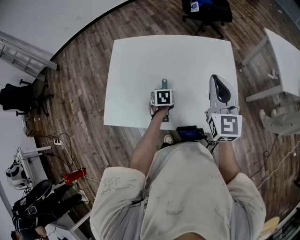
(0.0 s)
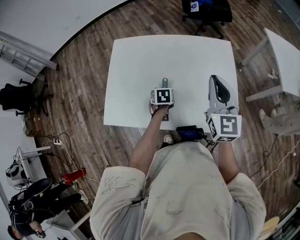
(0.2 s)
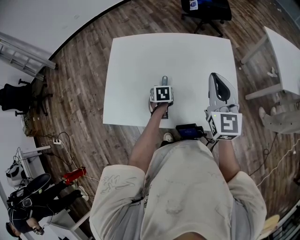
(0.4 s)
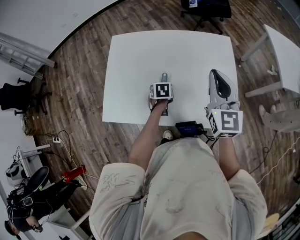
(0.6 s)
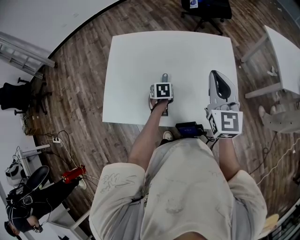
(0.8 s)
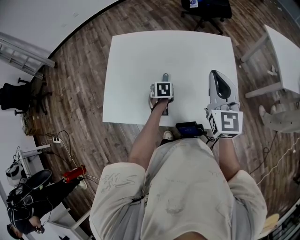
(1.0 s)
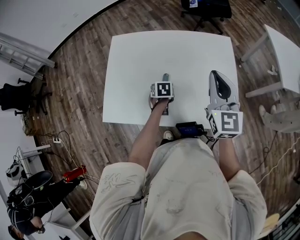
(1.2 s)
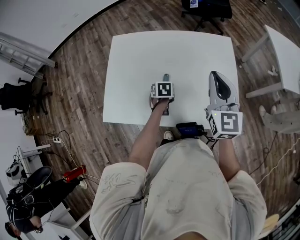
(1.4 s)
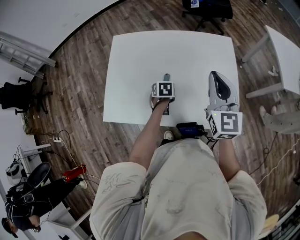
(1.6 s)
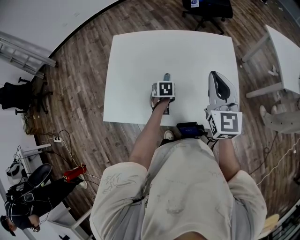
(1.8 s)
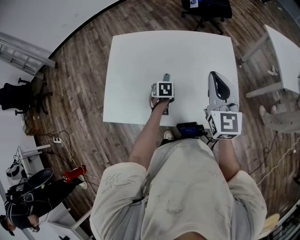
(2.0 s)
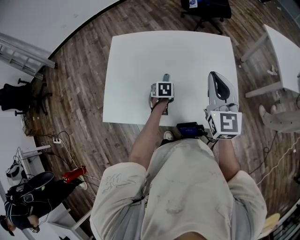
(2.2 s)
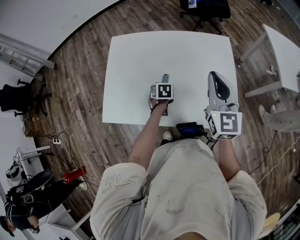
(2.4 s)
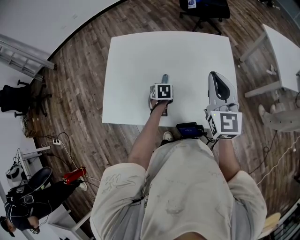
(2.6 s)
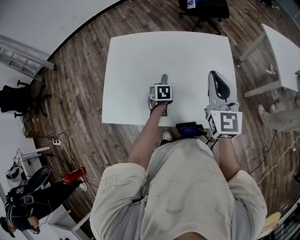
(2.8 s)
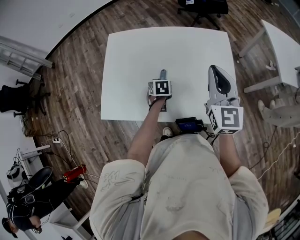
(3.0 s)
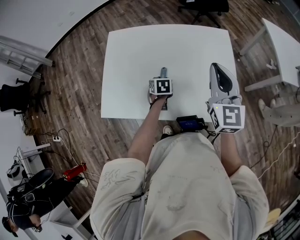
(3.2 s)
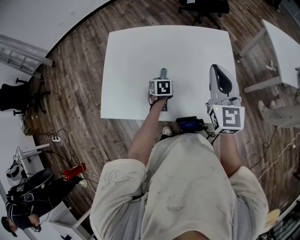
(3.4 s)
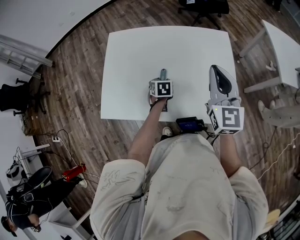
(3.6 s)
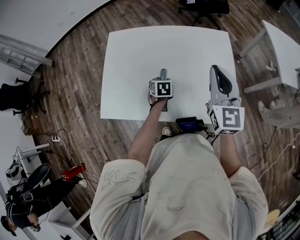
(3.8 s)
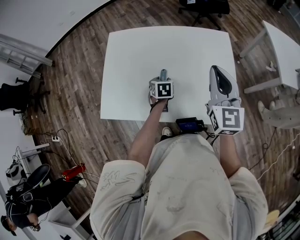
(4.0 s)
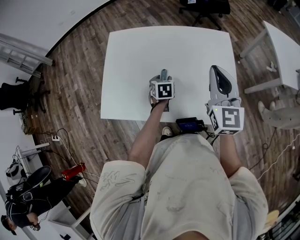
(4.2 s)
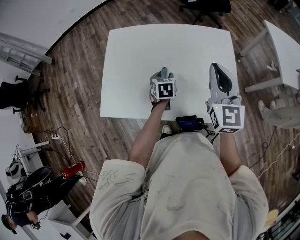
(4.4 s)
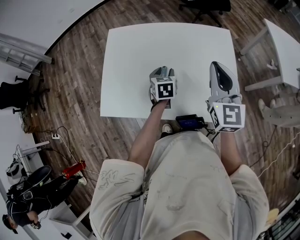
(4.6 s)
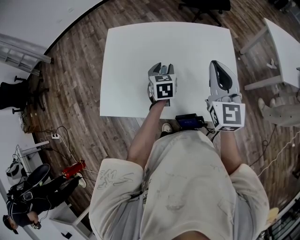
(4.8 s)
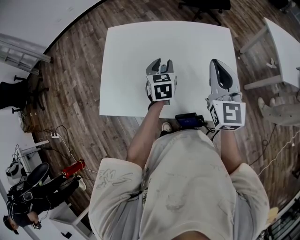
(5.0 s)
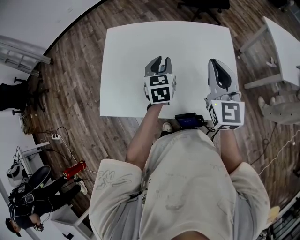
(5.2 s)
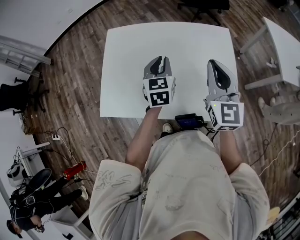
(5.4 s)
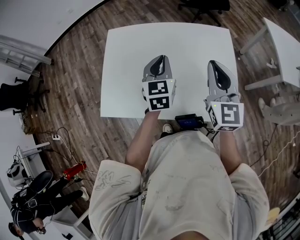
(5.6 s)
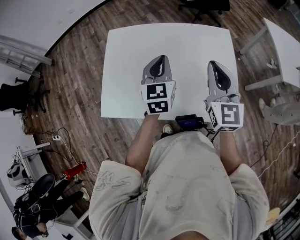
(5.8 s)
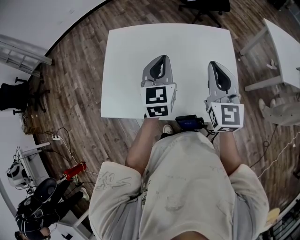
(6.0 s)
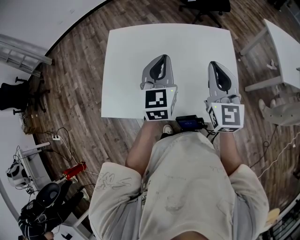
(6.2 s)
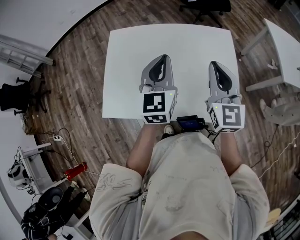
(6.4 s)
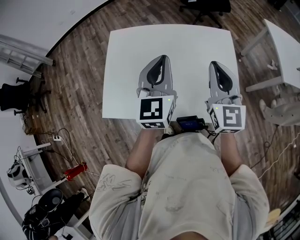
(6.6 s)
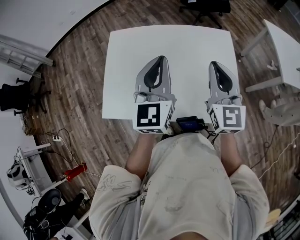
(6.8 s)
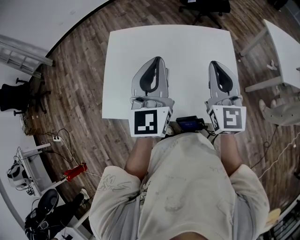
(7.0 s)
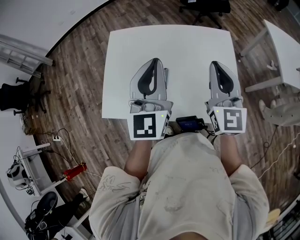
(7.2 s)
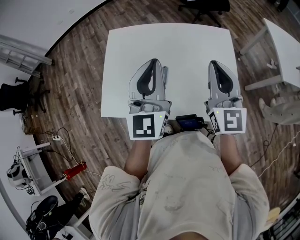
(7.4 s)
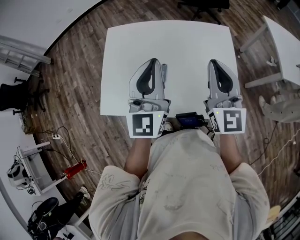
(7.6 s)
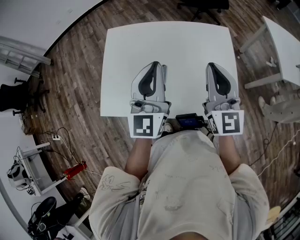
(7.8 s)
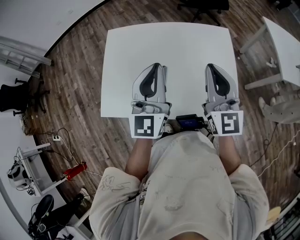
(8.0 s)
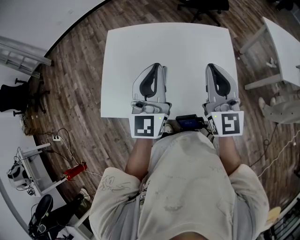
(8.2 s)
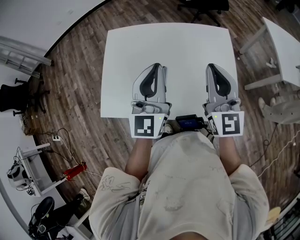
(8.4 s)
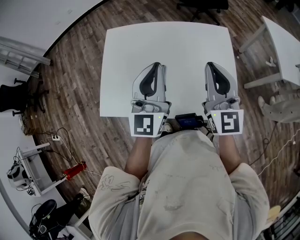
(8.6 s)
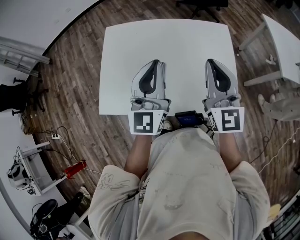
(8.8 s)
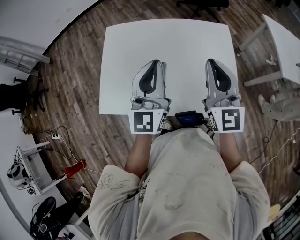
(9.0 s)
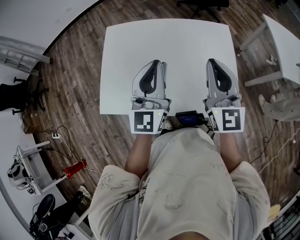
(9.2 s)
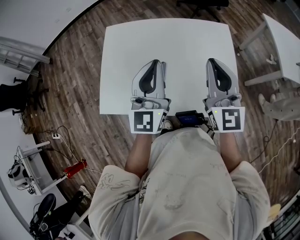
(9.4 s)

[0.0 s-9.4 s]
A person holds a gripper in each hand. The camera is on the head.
0.0 to 3.2 s: The grippers make only small movements.
3.2 to 4.8 s: The left gripper heads upward, covering about 10 cm, and changes its angle by about 20 degrees.
4.8 to 6.2 s: The left gripper heads upward, covering roughly 15 cm, turns by some 30 degrees, and closes up.
6.2 to 7.8 s: The left gripper moves upward and backward, some 10 cm, and rotates approximately 20 degrees.
7.8 to 9.4 s: The two grippers keep their place.

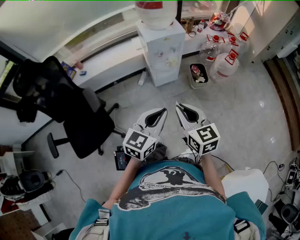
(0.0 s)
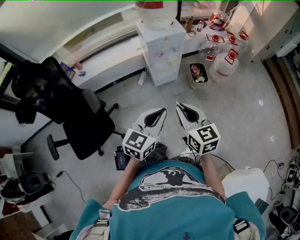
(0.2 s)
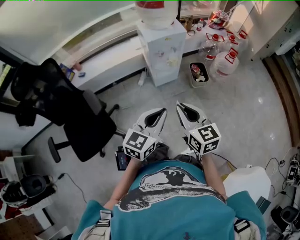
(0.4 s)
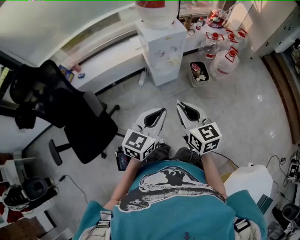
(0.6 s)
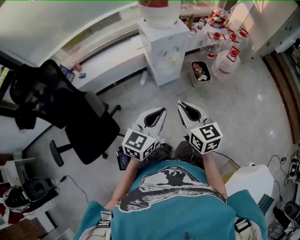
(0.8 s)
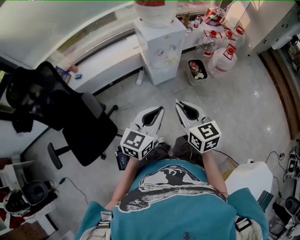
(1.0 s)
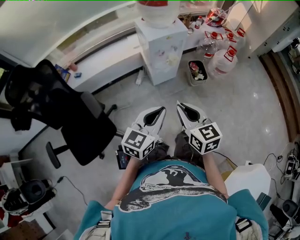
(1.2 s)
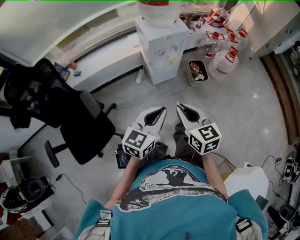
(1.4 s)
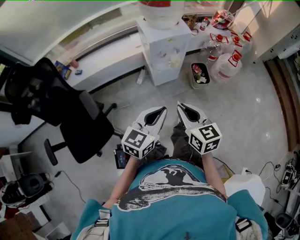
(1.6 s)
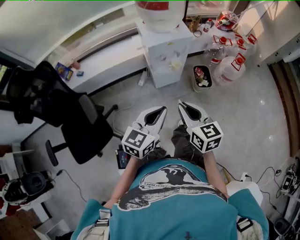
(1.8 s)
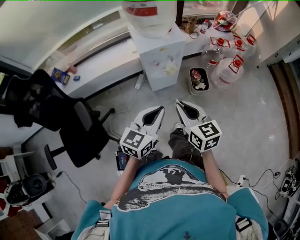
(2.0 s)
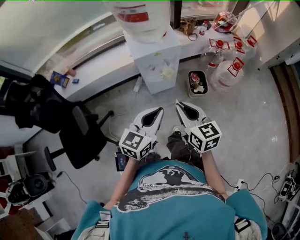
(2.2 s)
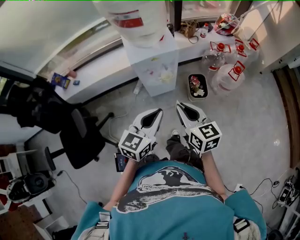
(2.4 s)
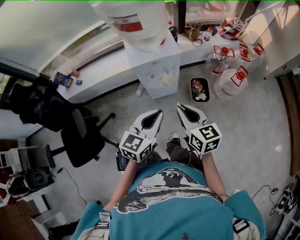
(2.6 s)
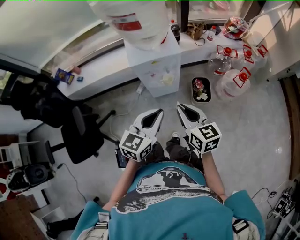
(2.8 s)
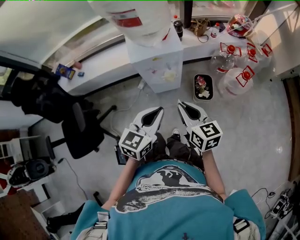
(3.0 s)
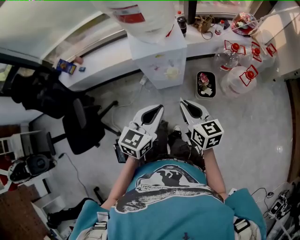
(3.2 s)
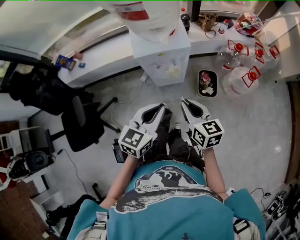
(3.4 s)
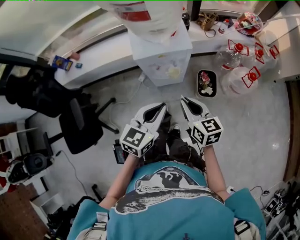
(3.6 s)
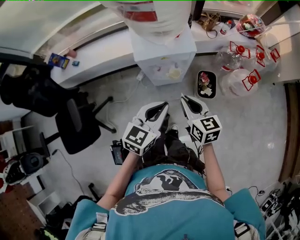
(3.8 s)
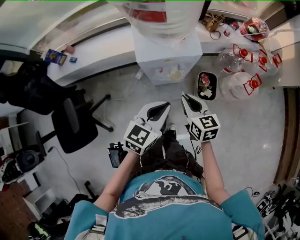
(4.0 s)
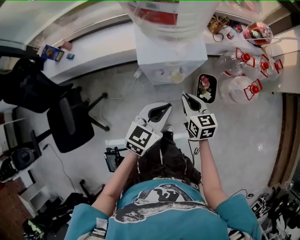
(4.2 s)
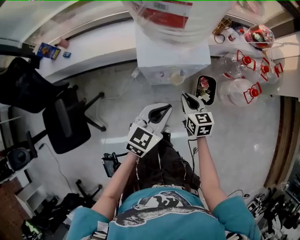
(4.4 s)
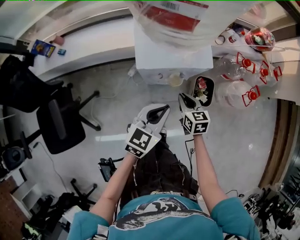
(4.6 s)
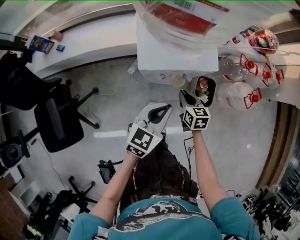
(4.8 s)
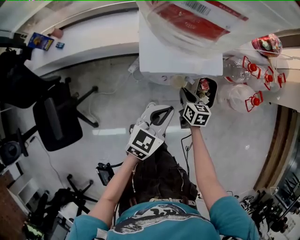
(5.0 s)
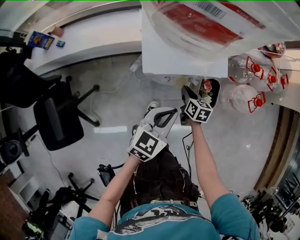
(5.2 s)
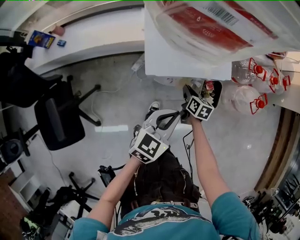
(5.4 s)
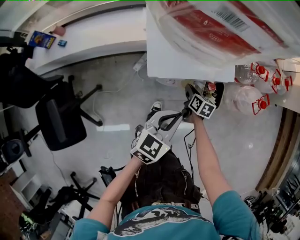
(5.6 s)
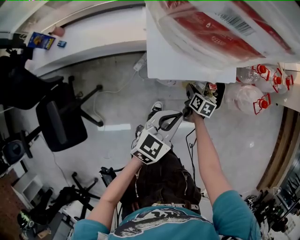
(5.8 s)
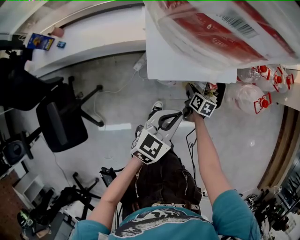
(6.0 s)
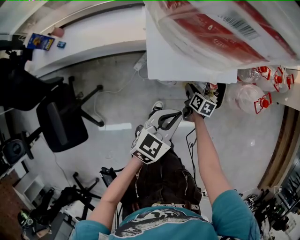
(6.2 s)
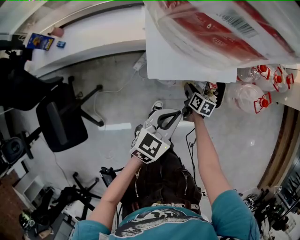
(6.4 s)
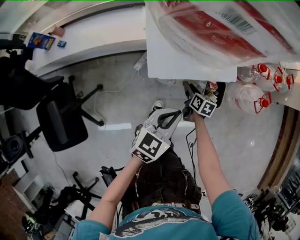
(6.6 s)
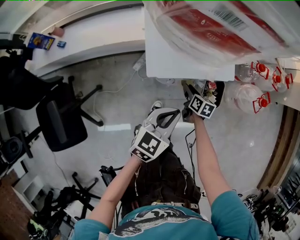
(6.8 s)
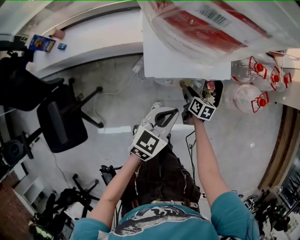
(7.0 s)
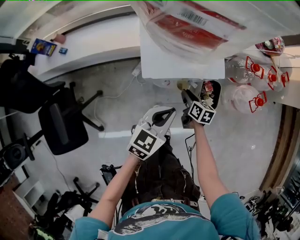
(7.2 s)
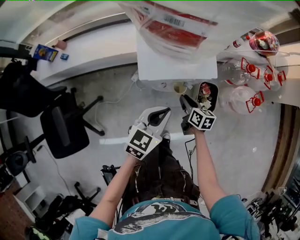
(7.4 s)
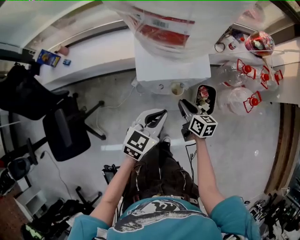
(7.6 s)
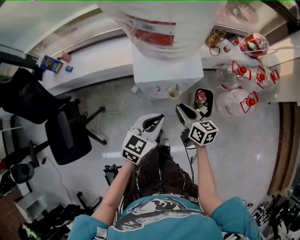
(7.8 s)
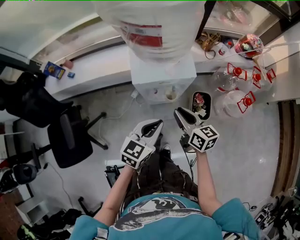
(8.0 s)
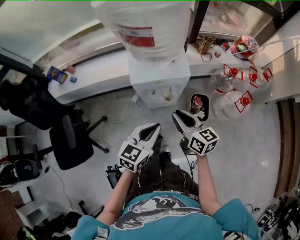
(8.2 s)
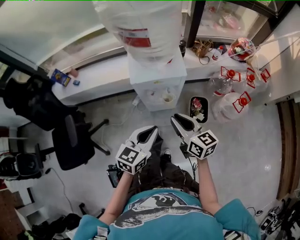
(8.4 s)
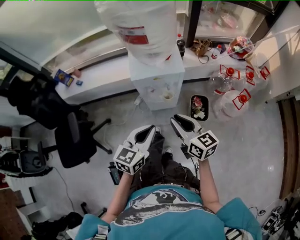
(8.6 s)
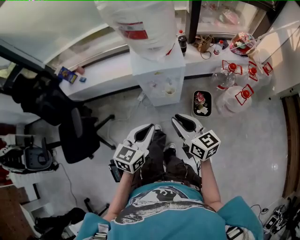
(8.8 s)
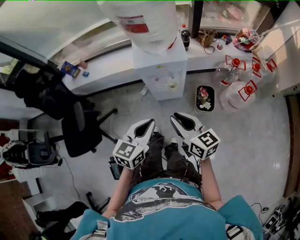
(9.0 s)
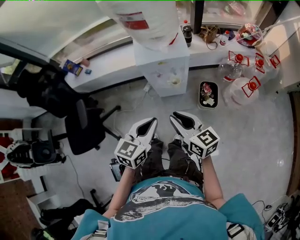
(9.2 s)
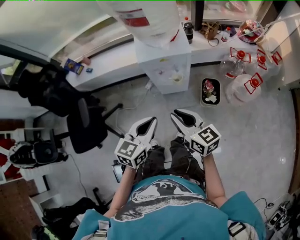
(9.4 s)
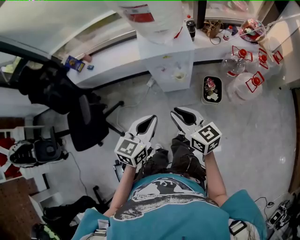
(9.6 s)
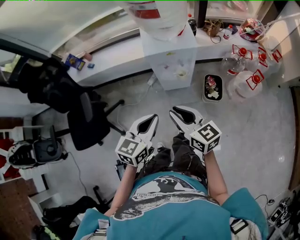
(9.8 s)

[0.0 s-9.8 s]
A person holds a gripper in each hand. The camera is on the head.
0.0 to 1.4 s: The right gripper changes place by roughly 5 cm; the left gripper shifts some 5 cm to the left.
1.4 to 2.8 s: The grippers both shift forward and to the right by about 25 cm.
2.8 to 4.2 s: The two grippers go approximately 15 cm forward and downward.
4.2 to 5.6 s: The right gripper goes approximately 25 cm downward and forward, and changes its angle by some 30 degrees, while the left gripper moves downward, about 10 cm.
5.6 to 7.0 s: The grippers stay close to where they were, moving slightly.
7.0 to 8.4 s: The right gripper travels upward and backward by roughly 35 cm, and changes its angle by roughly 40 degrees; the left gripper shifts some 15 cm backward and upward.
8.4 to 9.8 s: Both grippers travel together backward and to the left, approximately 10 cm.

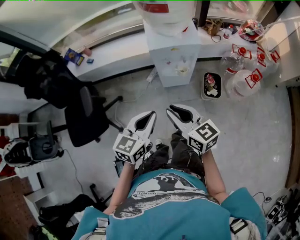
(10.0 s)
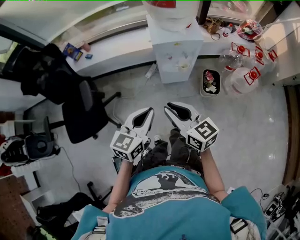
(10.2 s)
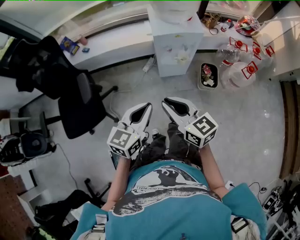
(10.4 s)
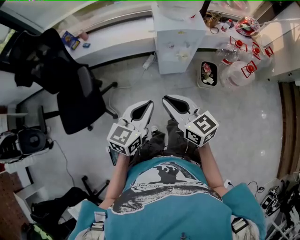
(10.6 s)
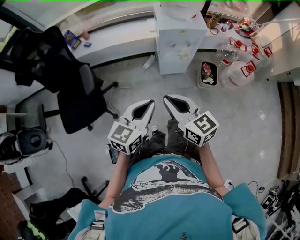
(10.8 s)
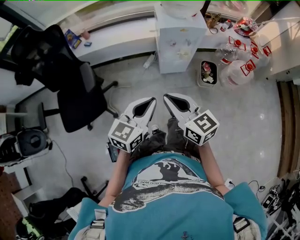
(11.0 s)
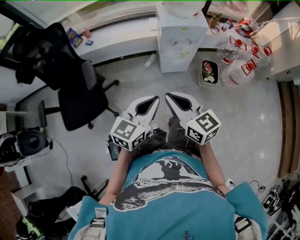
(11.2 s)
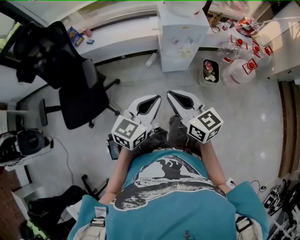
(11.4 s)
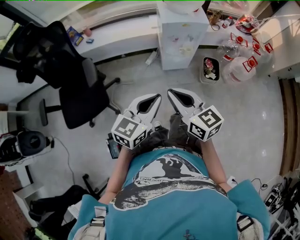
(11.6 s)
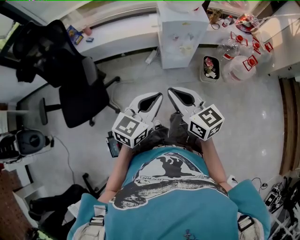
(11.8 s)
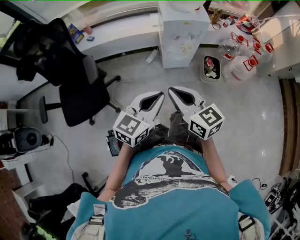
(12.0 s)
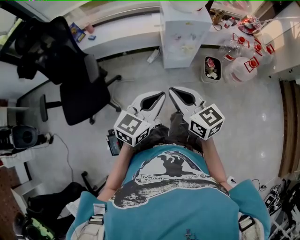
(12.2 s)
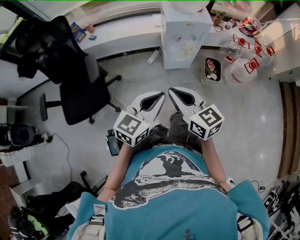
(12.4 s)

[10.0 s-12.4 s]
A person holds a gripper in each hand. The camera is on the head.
10.0 to 11.2 s: The right gripper moves to the left and backward, about 15 cm. Meanwhile the left gripper heads backward and to the left, covering approximately 10 cm.
11.2 to 12.4 s: The grippers move only a little.

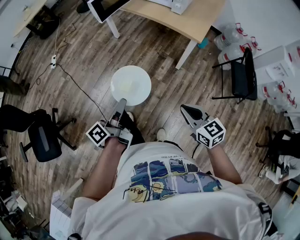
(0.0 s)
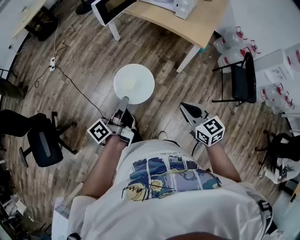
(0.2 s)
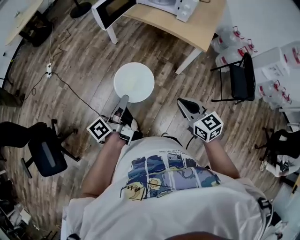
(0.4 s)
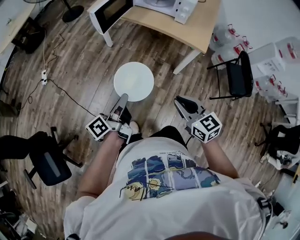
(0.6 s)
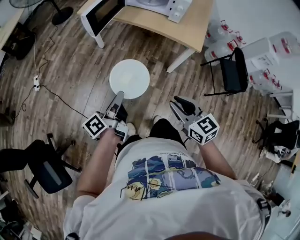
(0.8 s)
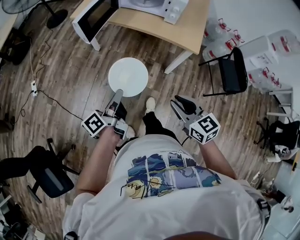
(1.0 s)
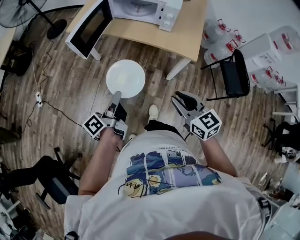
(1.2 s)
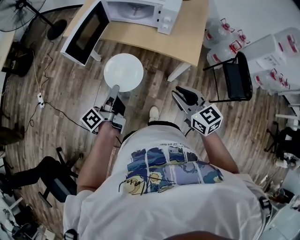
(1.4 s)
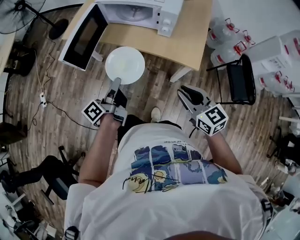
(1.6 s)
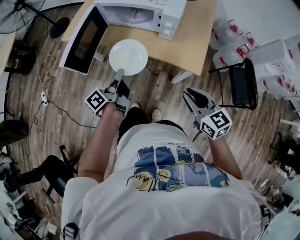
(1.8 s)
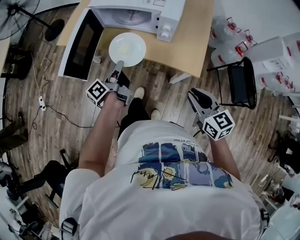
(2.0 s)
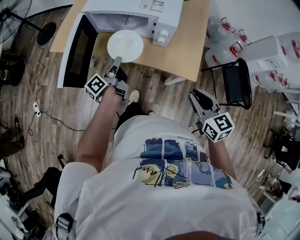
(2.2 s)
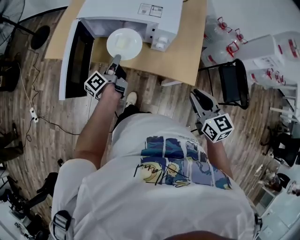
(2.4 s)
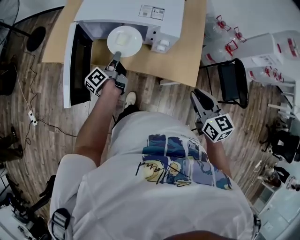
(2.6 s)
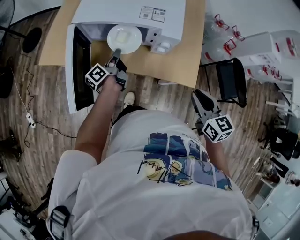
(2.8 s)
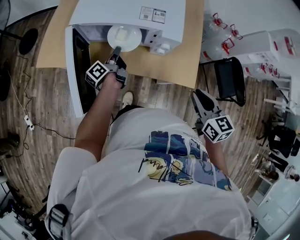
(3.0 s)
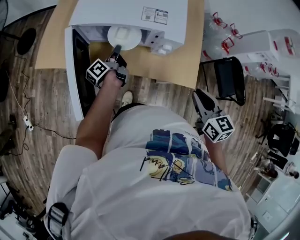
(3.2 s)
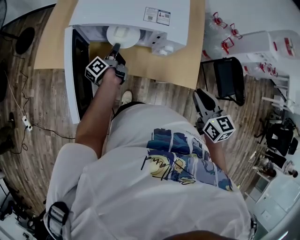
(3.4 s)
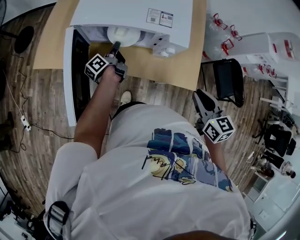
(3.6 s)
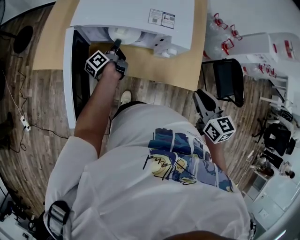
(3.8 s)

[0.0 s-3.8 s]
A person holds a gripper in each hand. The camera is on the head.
0.0 to 1.2 s: Both grippers travel together forward, some 25 cm.
1.2 to 2.6 s: The right gripper is displaced forward and to the right by some 25 cm, and turns by roughly 20 degrees, while the left gripper goes approximately 40 cm forward.
2.6 to 3.8 s: The right gripper shifts by some 5 cm. Meanwhile the left gripper is displaced forward and downward by about 10 cm.
